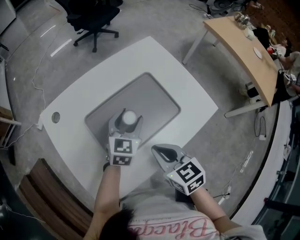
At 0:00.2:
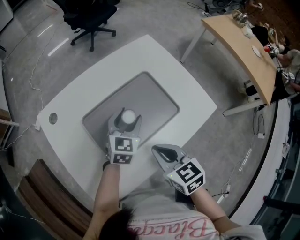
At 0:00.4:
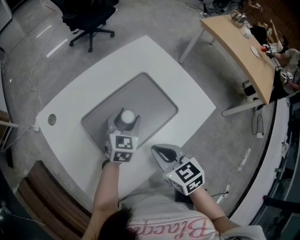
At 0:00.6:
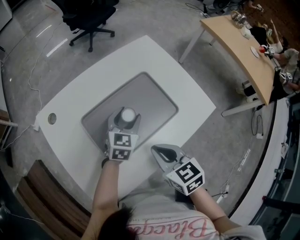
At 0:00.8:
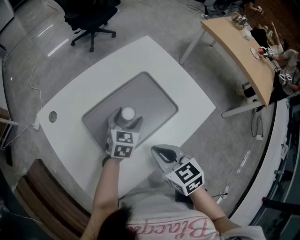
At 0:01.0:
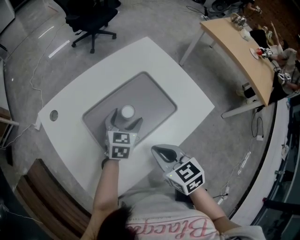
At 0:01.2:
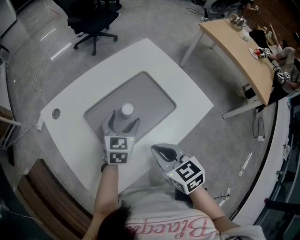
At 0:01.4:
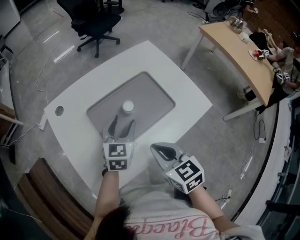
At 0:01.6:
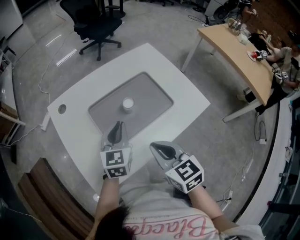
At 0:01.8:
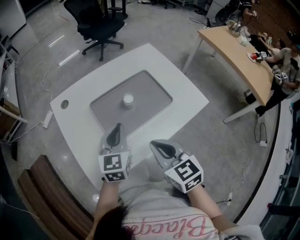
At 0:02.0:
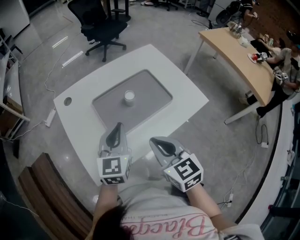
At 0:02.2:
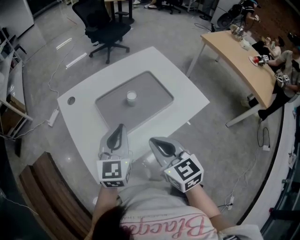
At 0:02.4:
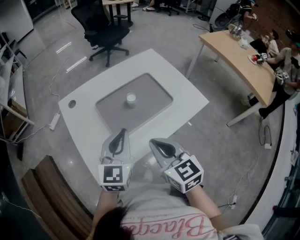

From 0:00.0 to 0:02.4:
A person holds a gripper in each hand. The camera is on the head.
From 0:00.0 to 0:01.2: The left gripper opens.
From 0:01.2 to 0:02.4: The right gripper moves upward, some 5 cm. Meanwhile the left gripper heads backward, upward and to the left, covering about 20 cm, and closes up.

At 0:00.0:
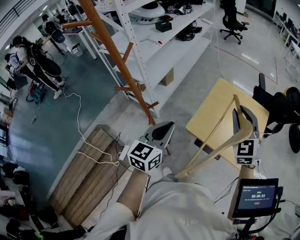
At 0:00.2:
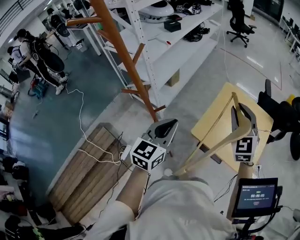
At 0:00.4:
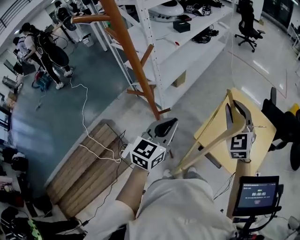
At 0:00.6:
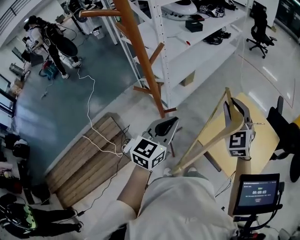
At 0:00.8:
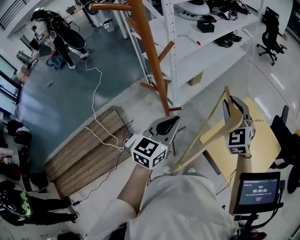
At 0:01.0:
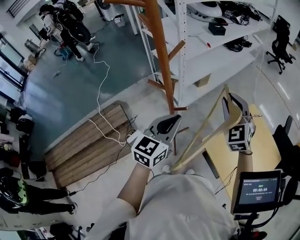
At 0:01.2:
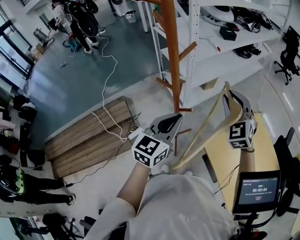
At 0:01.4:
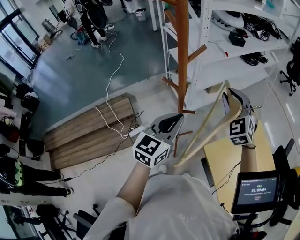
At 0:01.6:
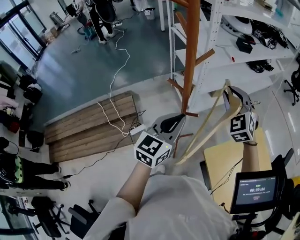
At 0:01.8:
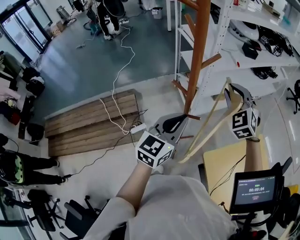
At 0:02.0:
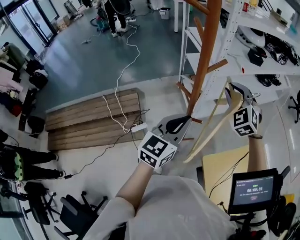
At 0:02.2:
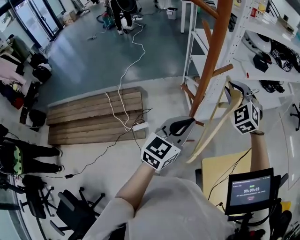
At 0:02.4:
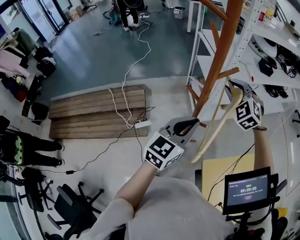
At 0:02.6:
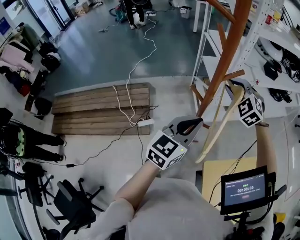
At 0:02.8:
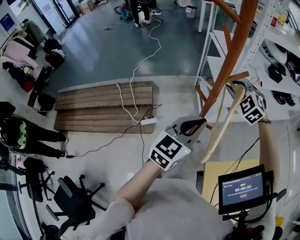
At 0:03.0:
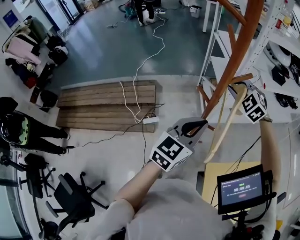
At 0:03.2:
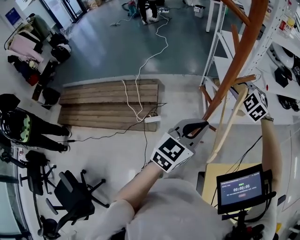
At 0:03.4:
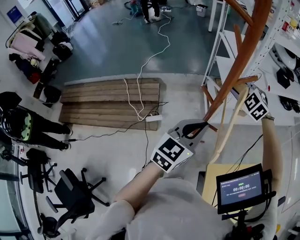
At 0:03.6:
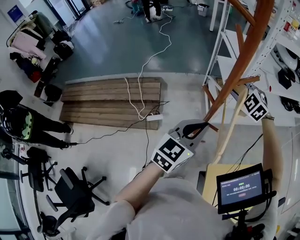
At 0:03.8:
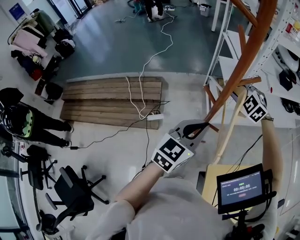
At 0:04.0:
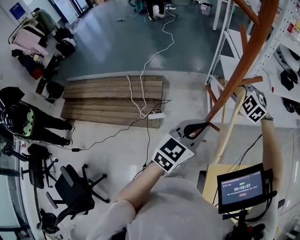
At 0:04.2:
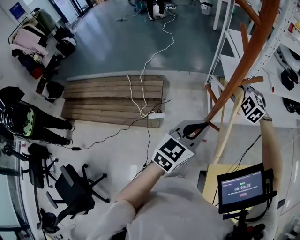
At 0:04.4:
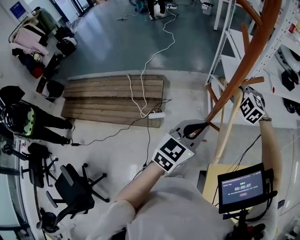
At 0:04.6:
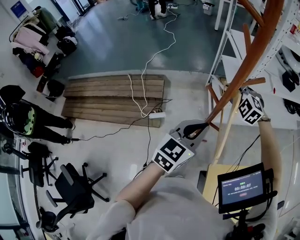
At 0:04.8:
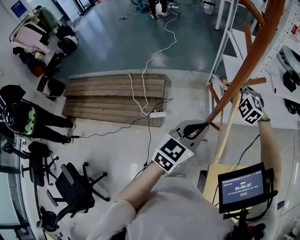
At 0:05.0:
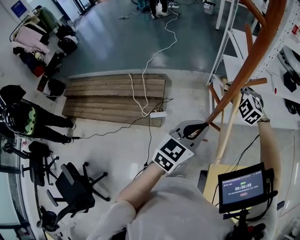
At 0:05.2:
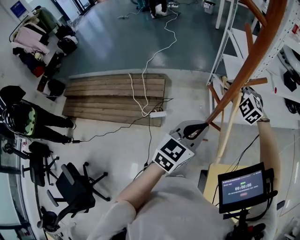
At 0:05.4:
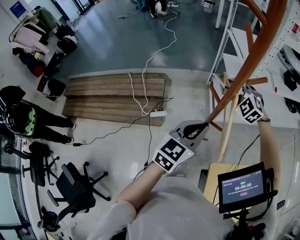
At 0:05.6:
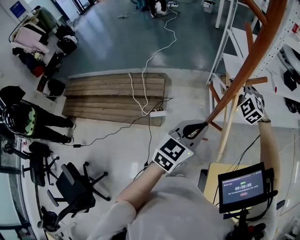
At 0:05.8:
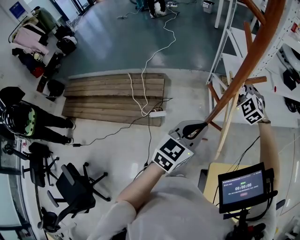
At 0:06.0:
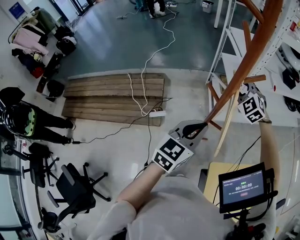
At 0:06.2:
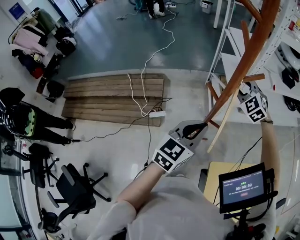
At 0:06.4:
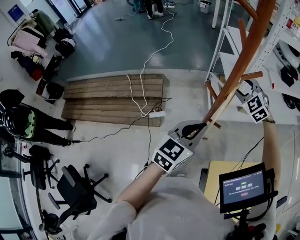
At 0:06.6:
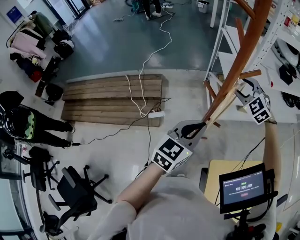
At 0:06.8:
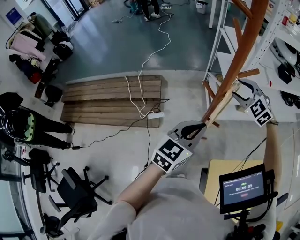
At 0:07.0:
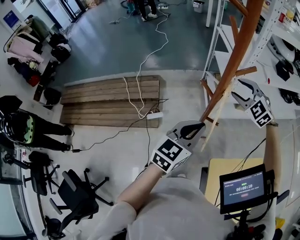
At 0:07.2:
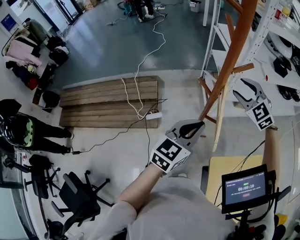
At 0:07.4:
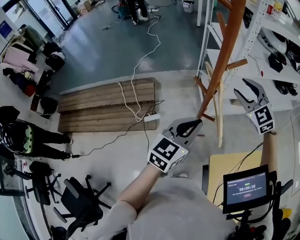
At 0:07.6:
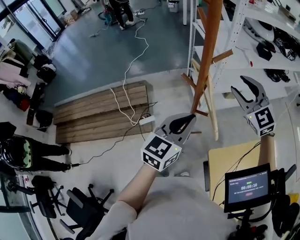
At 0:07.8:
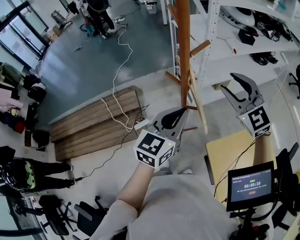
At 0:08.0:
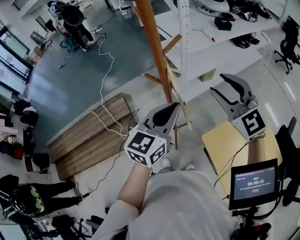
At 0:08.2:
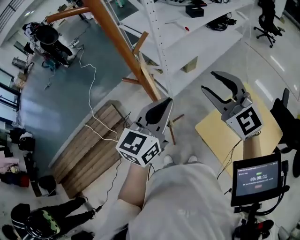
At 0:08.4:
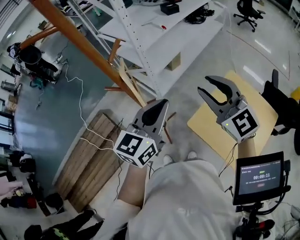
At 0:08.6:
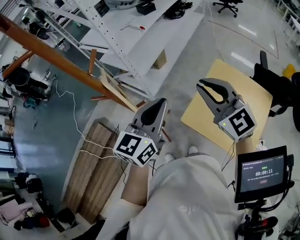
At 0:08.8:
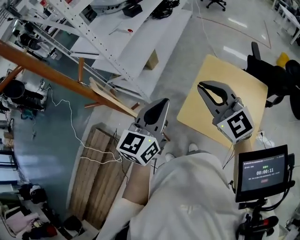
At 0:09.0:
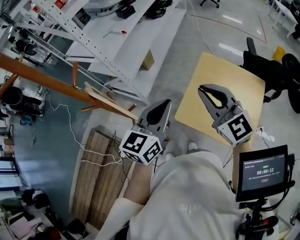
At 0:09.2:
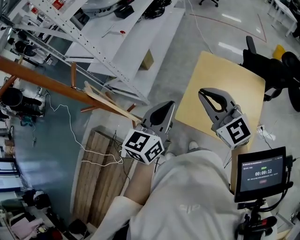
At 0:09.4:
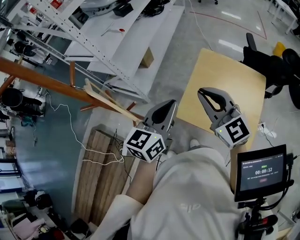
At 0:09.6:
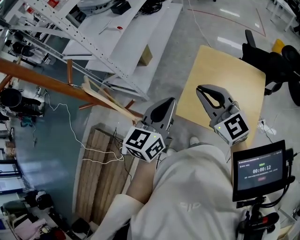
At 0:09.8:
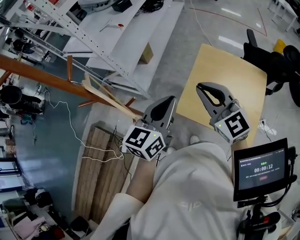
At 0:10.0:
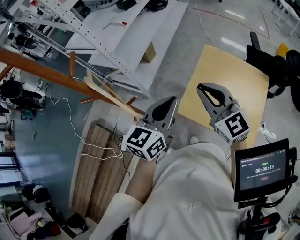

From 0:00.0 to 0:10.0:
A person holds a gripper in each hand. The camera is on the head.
From 0:00.0 to 0:01.4: The right gripper ends up approximately 30 cm from where it was, and turns by approximately 40 degrees. Meanwhile the left gripper ends up some 15 cm from where it was, and swivels roughly 30 degrees.
From 0:01.4 to 0:02.8: The right gripper is displaced to the left and forward by approximately 20 cm, and rotates some 40 degrees.
From 0:02.8 to 0:04.2: The right gripper travels downward by approximately 5 cm.
From 0:04.2 to 0:05.8: The grippers make only small movements.
From 0:05.8 to 0:07.2: The right gripper goes some 5 cm to the right, and opens.
From 0:07.2 to 0:08.6: The left gripper moves approximately 15 cm, and changes its angle by roughly 40 degrees, while the right gripper moves about 30 cm, swivels approximately 60 degrees, and closes.
From 0:08.6 to 0:10.0: The left gripper is displaced to the right and downward by roughly 10 cm, while the right gripper shifts some 5 cm downward.

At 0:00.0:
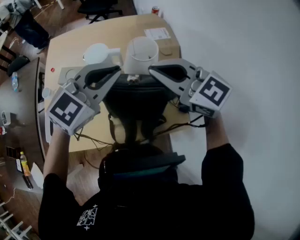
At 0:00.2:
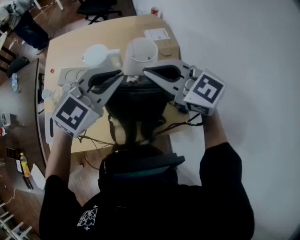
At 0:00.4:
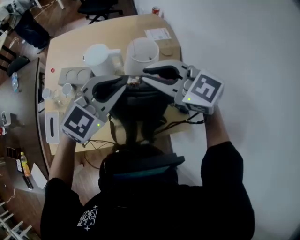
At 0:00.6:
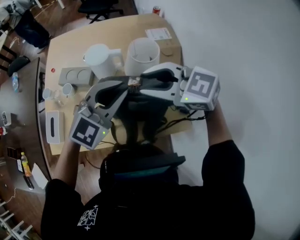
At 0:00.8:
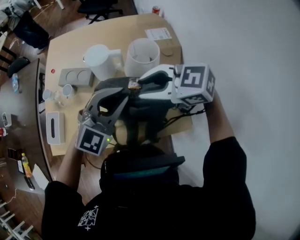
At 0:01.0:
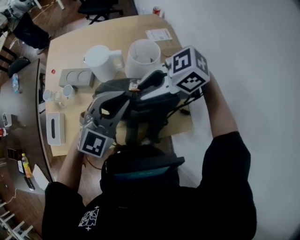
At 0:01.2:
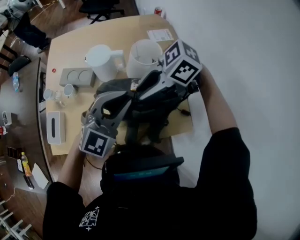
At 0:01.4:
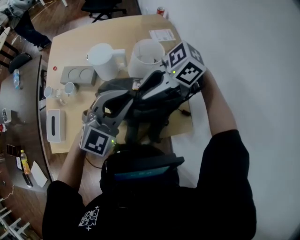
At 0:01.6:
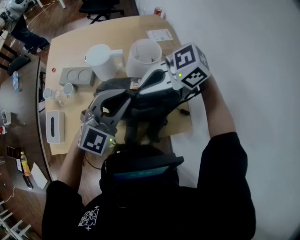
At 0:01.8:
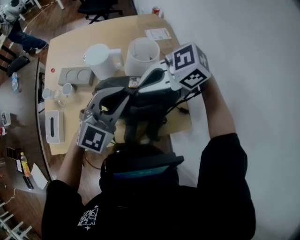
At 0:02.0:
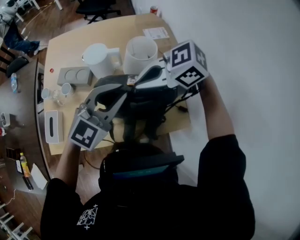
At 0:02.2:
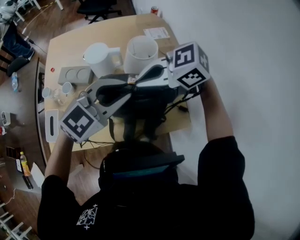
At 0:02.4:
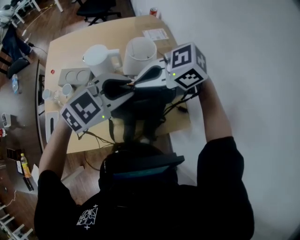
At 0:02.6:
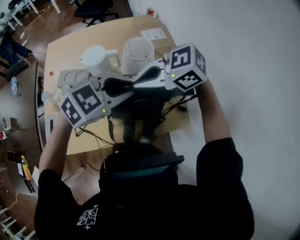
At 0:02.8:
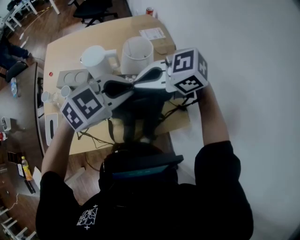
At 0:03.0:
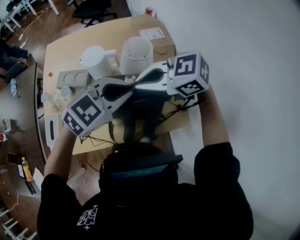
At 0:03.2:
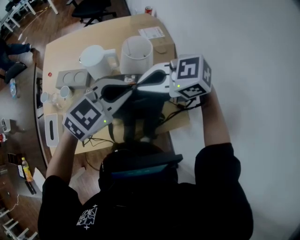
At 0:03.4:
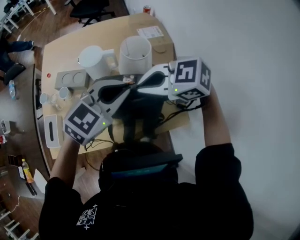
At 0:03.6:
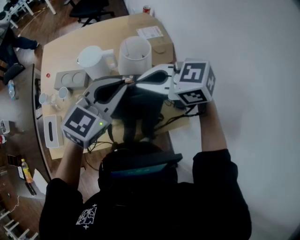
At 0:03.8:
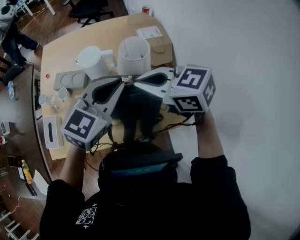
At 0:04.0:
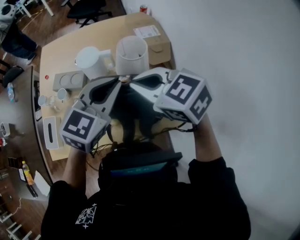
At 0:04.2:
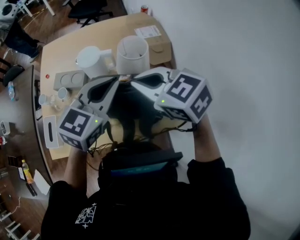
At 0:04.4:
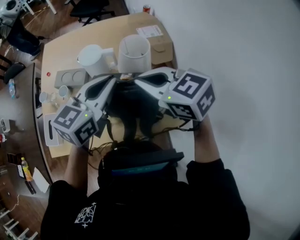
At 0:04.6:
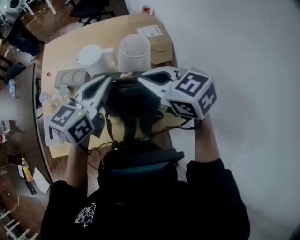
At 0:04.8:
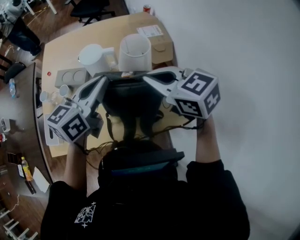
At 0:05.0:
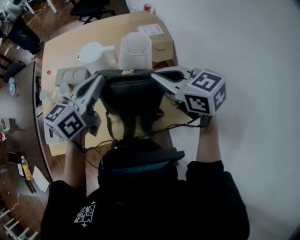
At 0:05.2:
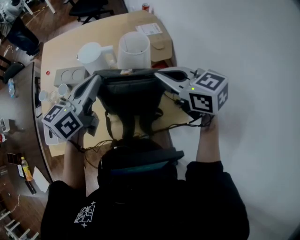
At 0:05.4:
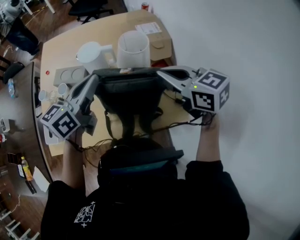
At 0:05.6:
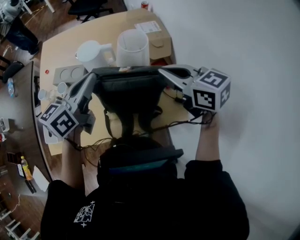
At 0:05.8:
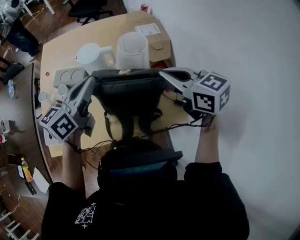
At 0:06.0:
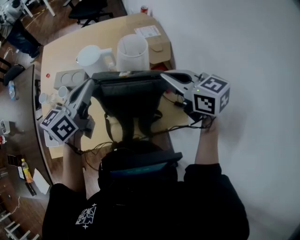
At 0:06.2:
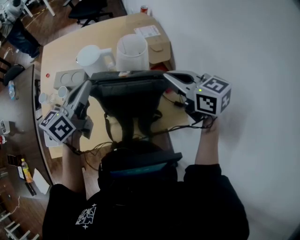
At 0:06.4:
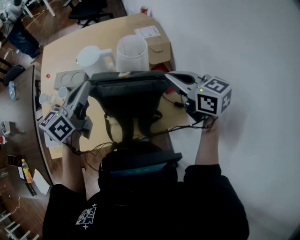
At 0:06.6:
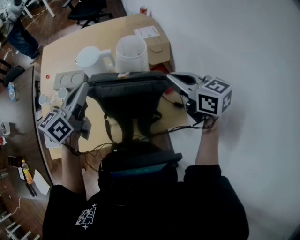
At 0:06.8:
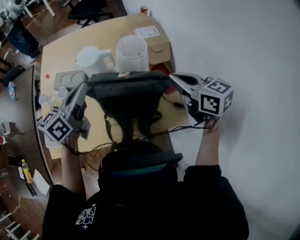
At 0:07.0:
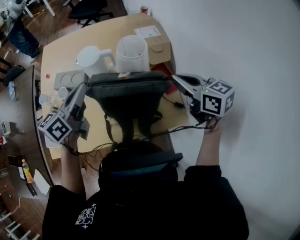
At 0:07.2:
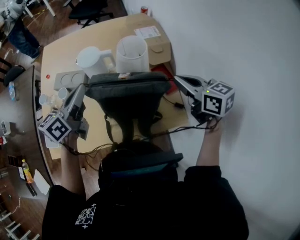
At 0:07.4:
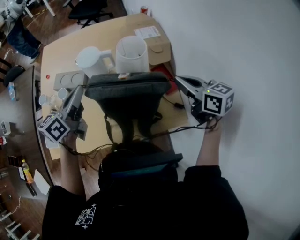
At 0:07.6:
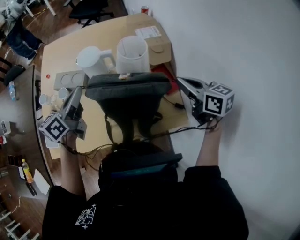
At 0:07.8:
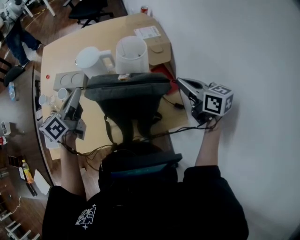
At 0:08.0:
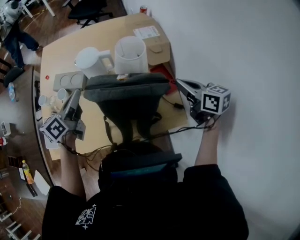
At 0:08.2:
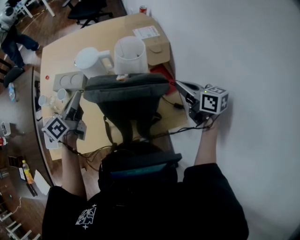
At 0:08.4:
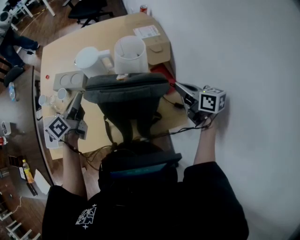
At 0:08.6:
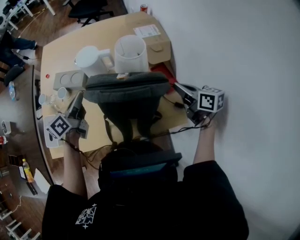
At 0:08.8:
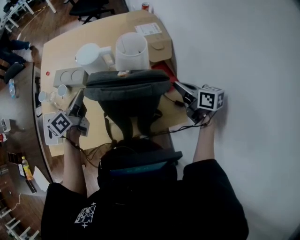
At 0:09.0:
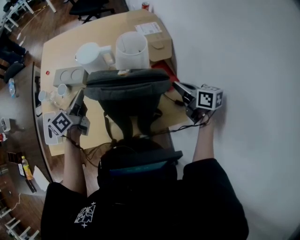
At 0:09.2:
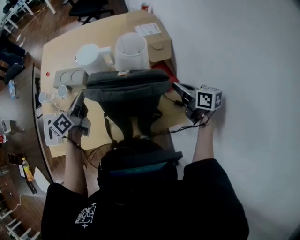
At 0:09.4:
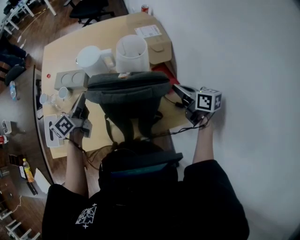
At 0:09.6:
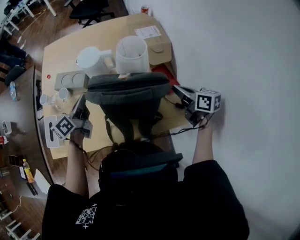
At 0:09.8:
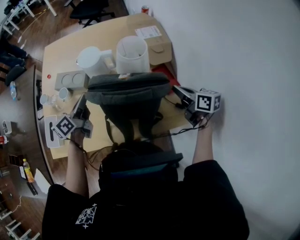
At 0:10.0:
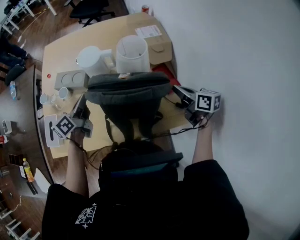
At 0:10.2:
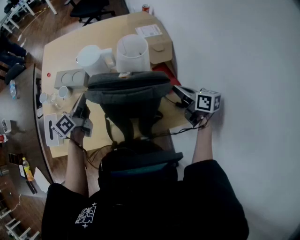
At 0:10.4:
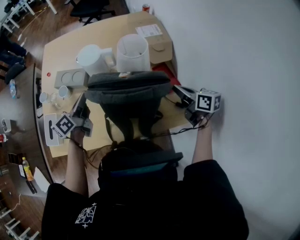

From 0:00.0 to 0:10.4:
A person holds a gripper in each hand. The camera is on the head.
From 0:00.0 to 0:01.4: The left gripper goes some 5 cm downward, while the right gripper is displaced downward by roughly 10 cm, swivels about 60 degrees, and opens.
From 0:01.4 to 0:03.0: The left gripper swivels about 30 degrees; the right gripper swivels about 30 degrees, and closes up.
From 0:03.0 to 0:04.4: The right gripper rotates some 30 degrees. Meanwhile the left gripper shifts by about 5 cm, and swivels roughly 40 degrees.
From 0:04.4 to 0:06.0: The left gripper heads to the left, covering approximately 5 cm, and swivels some 20 degrees, while the right gripper shifts about 10 cm to the right.
From 0:06.0 to 0:07.4: The right gripper shifts roughly 5 cm to the right. The left gripper changes place by some 5 cm.
From 0:07.4 to 0:09.0: Both grippers move downward, some 10 cm.
From 0:09.0 to 0:10.4: The grippers stay close to where they were, moving slightly.
